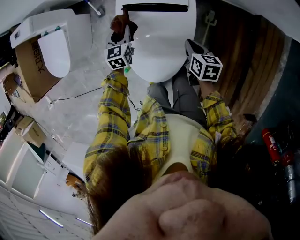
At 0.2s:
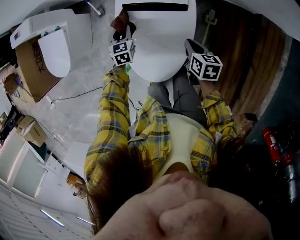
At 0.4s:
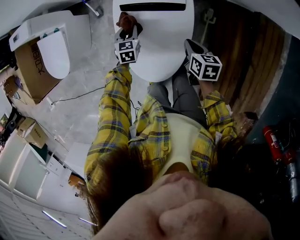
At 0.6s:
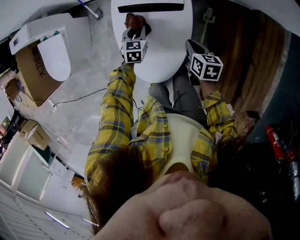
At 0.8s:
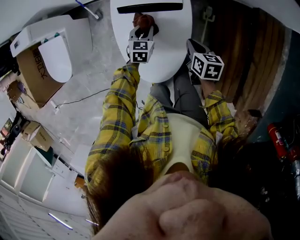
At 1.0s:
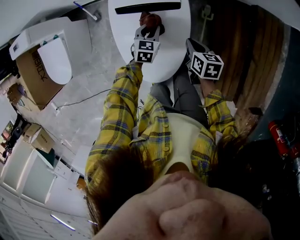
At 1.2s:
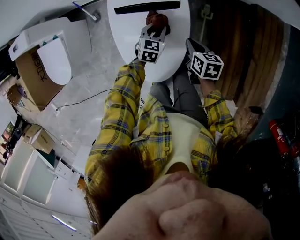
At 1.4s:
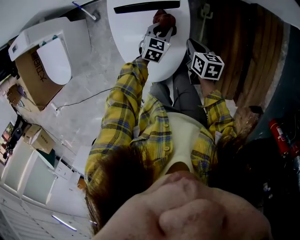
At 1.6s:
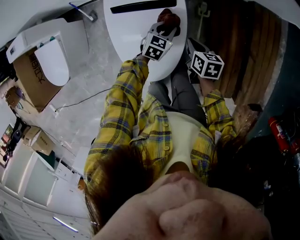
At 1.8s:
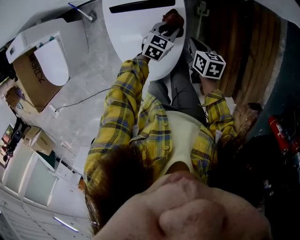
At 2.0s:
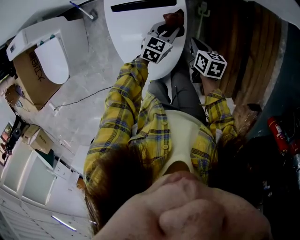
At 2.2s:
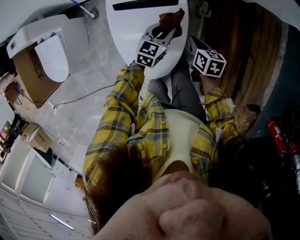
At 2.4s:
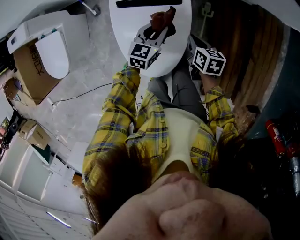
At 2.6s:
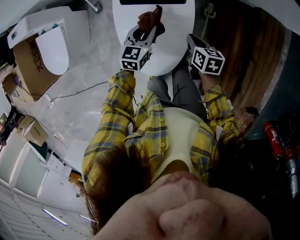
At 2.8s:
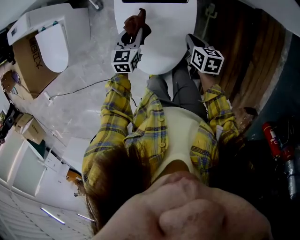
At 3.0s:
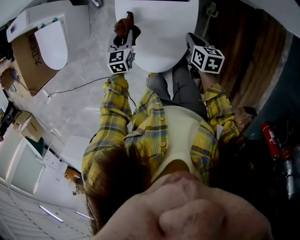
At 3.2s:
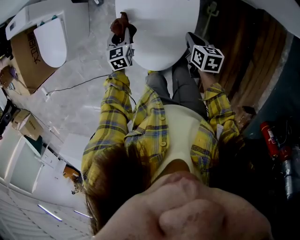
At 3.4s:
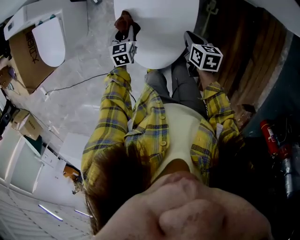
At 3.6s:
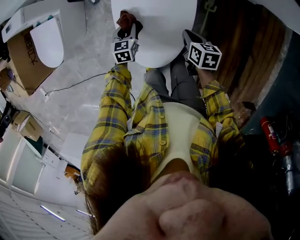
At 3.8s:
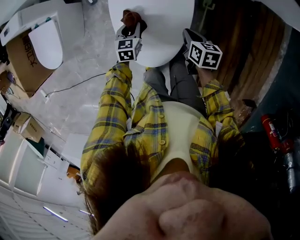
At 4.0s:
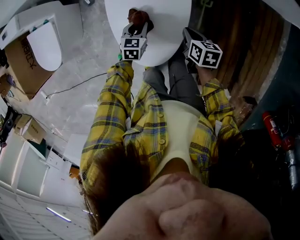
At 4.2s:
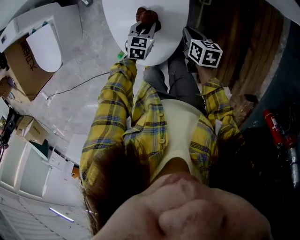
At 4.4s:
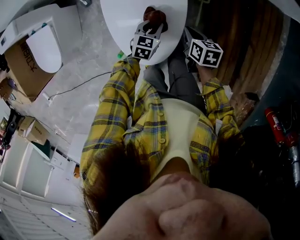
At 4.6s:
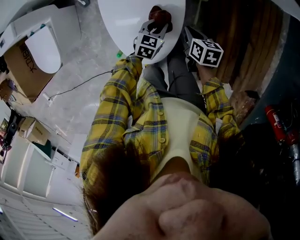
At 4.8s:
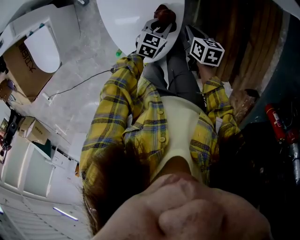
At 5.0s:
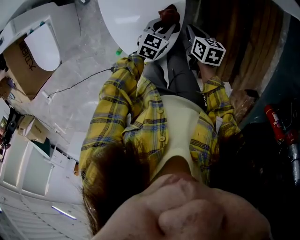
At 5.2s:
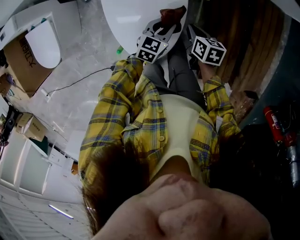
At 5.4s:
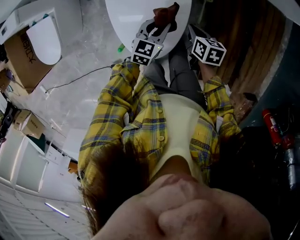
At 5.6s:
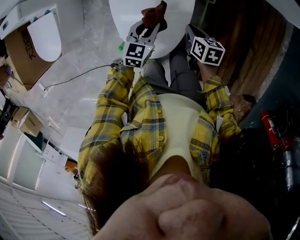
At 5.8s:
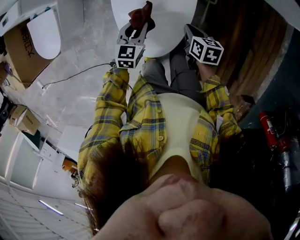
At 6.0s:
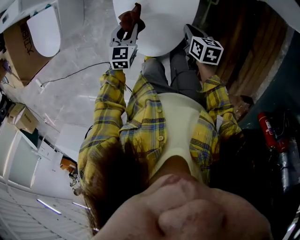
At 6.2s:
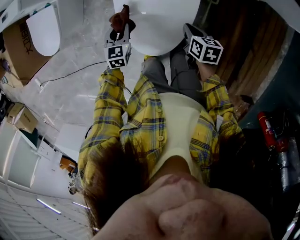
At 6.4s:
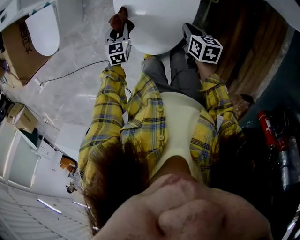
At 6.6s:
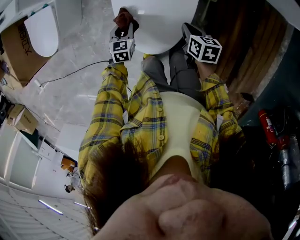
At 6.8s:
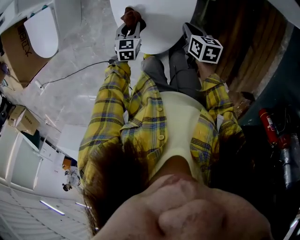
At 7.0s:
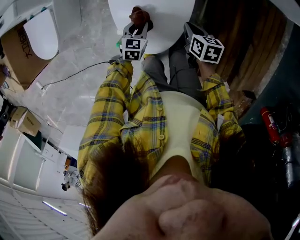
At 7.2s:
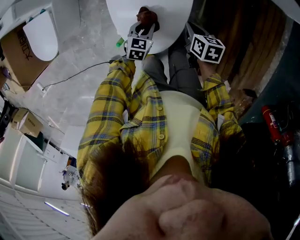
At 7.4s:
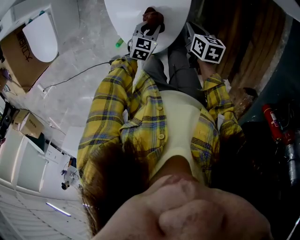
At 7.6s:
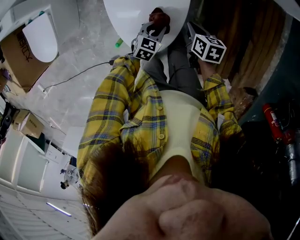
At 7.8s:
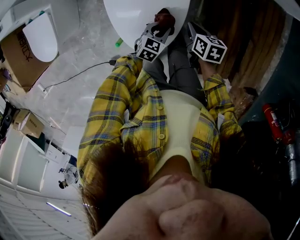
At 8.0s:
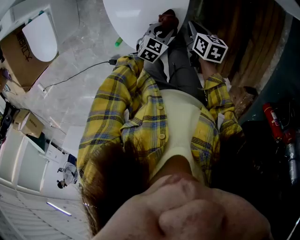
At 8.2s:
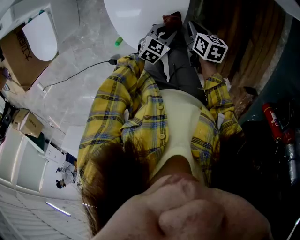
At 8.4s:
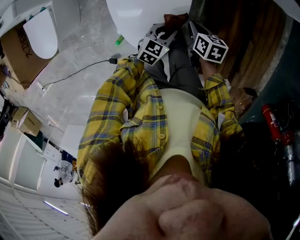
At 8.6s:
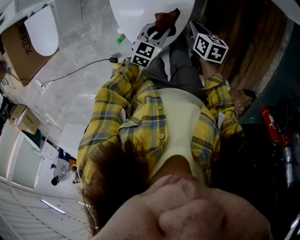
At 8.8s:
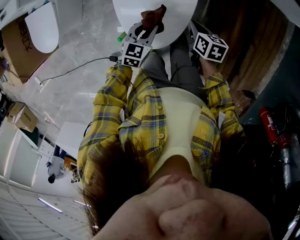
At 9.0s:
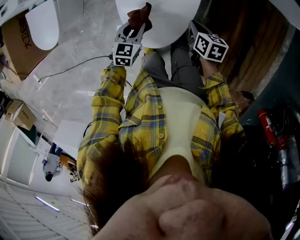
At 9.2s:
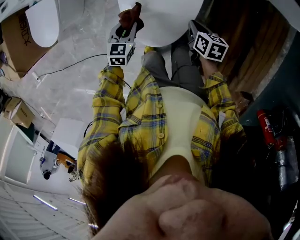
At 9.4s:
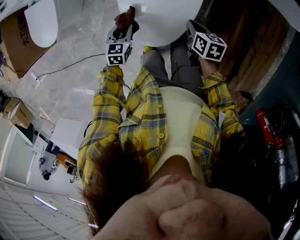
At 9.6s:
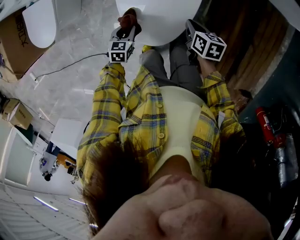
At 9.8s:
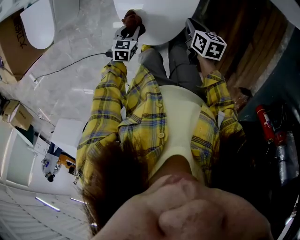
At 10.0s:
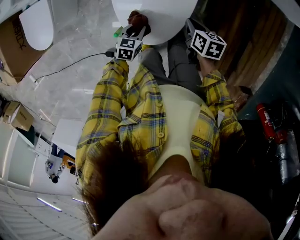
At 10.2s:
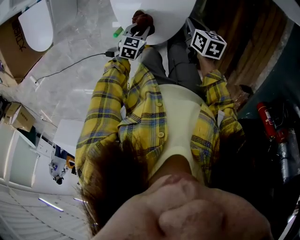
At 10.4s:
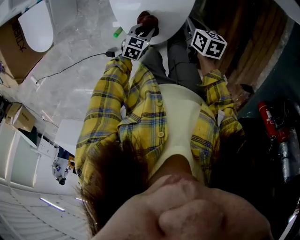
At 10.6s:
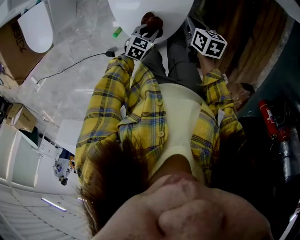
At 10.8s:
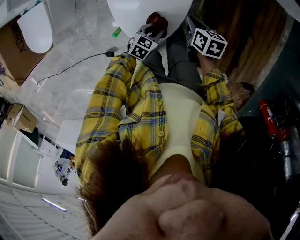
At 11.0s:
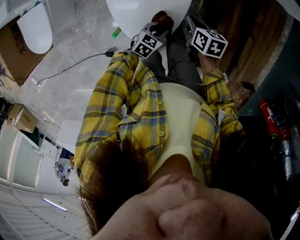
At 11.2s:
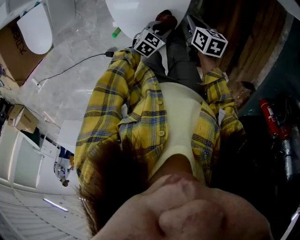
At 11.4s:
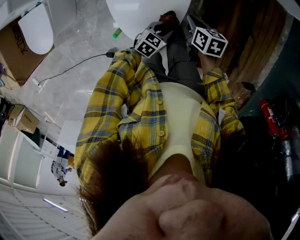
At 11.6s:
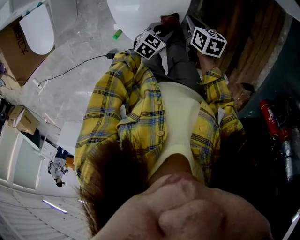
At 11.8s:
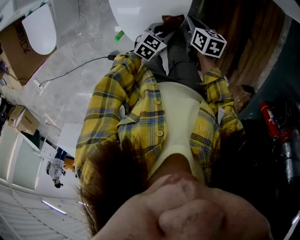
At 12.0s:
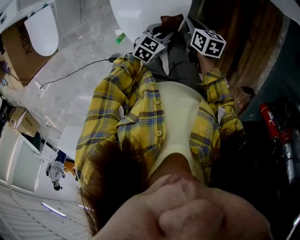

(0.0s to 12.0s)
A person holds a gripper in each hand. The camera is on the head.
0.0s - 1.6s: The left gripper shifts by approximately 25 cm, and swivels roughly 40 degrees.
1.6s - 3.0s: The left gripper changes place by about 25 cm, and swivels some 30 degrees.
3.0s - 4.4s: The left gripper heads to the right, covering roughly 15 cm, and rotates about 30 degrees.
4.4s - 6.0s: The left gripper is displaced to the left and upward by some 15 cm.
6.0s - 7.6s: The left gripper shifts by about 15 cm, and swivels about 20 degrees.
7.6s - 9.0s: The left gripper goes roughly 15 cm to the left and upward.
9.0s - 10.4s: The left gripper moves downward and backward, approximately 10 cm.
10.4s - 12.0s: The left gripper shifts approximately 10 cm to the right and upward.

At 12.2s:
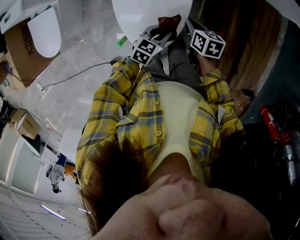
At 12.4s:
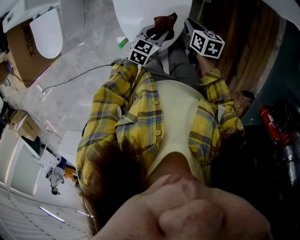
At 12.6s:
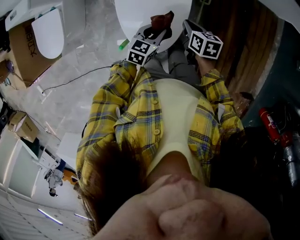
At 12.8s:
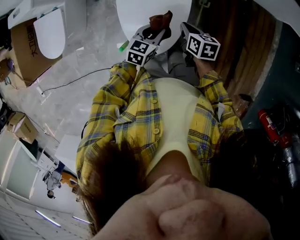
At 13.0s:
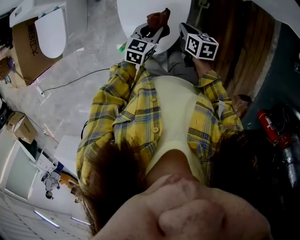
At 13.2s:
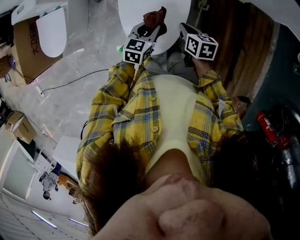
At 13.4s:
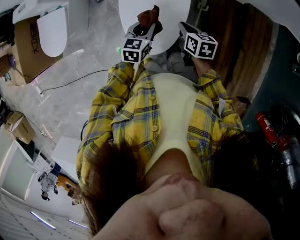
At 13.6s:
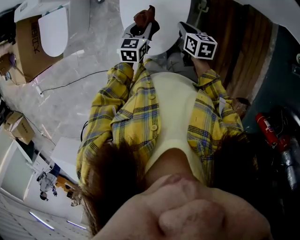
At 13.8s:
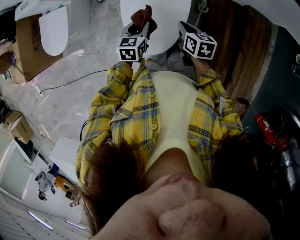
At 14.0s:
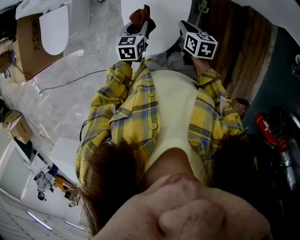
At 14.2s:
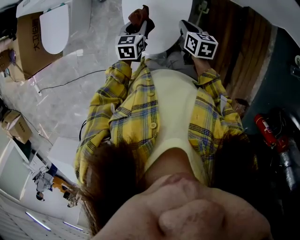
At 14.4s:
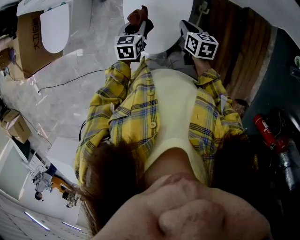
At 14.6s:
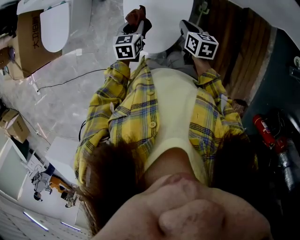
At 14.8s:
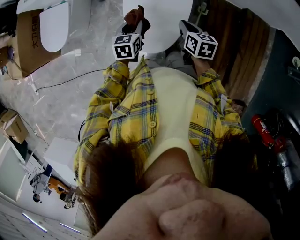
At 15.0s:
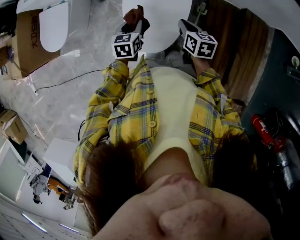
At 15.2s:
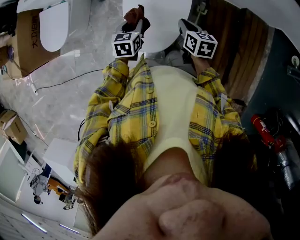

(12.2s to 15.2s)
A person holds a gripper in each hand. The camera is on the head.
12.2s - 13.8s: The left gripper heads to the left and upward, covering about 15 cm, and changes its angle by roughly 30 degrees, while the right gripper goes approximately 5 cm upward.
13.8s - 15.2s: The grippers make only small movements.

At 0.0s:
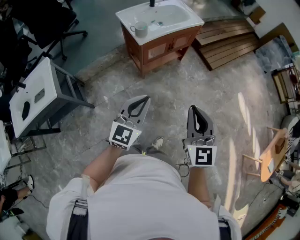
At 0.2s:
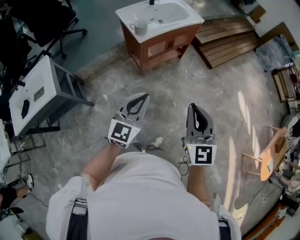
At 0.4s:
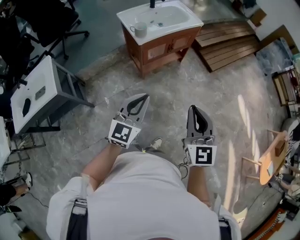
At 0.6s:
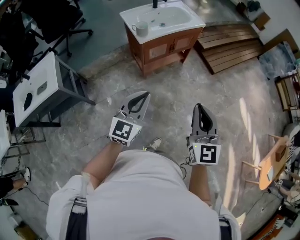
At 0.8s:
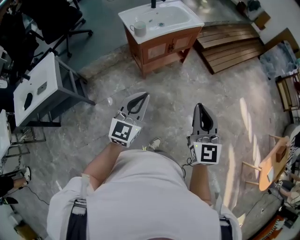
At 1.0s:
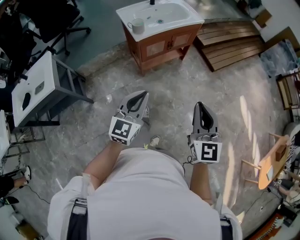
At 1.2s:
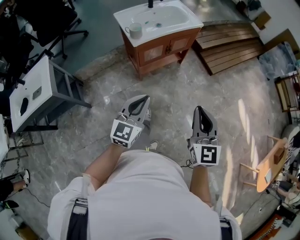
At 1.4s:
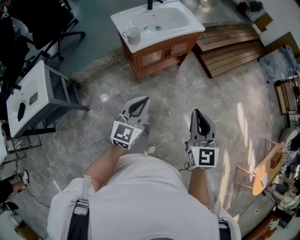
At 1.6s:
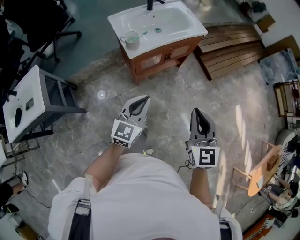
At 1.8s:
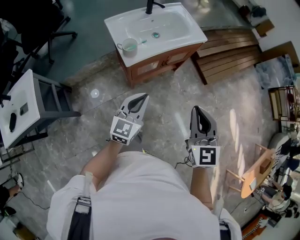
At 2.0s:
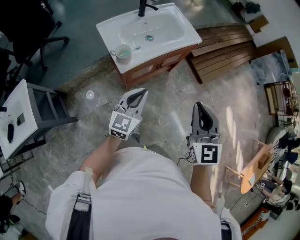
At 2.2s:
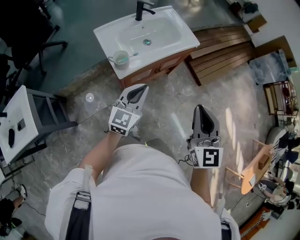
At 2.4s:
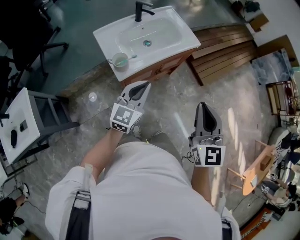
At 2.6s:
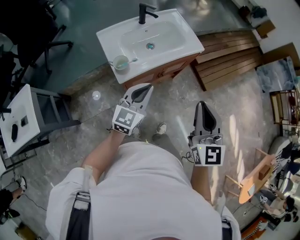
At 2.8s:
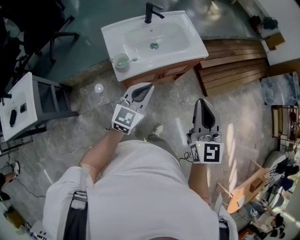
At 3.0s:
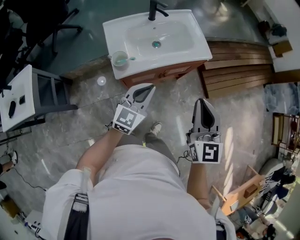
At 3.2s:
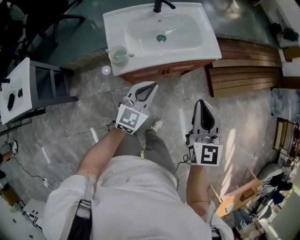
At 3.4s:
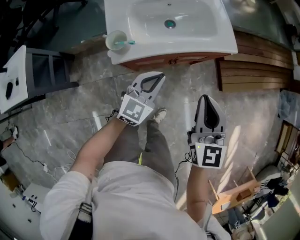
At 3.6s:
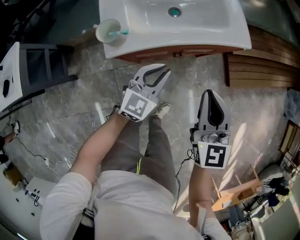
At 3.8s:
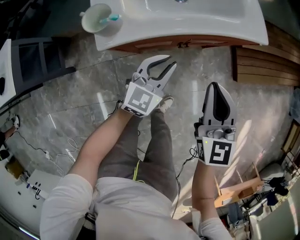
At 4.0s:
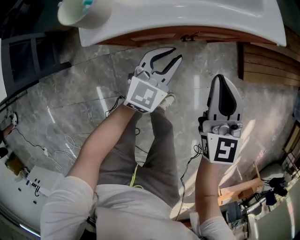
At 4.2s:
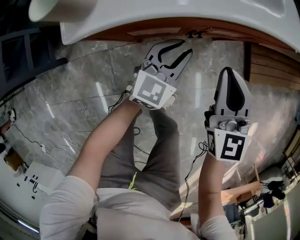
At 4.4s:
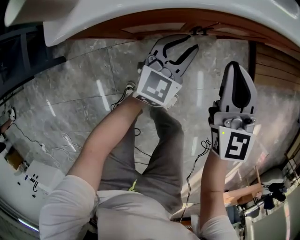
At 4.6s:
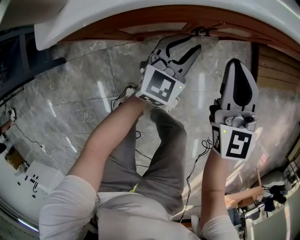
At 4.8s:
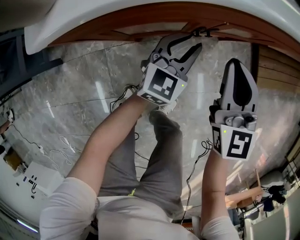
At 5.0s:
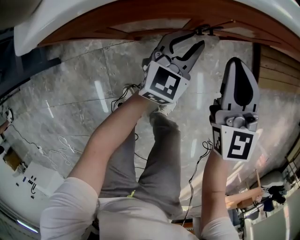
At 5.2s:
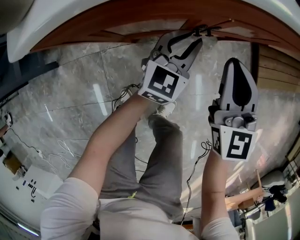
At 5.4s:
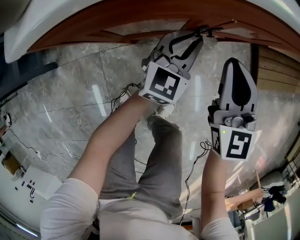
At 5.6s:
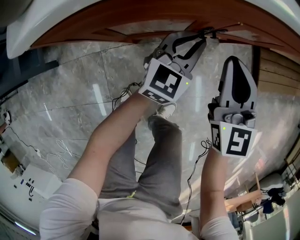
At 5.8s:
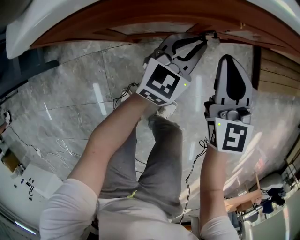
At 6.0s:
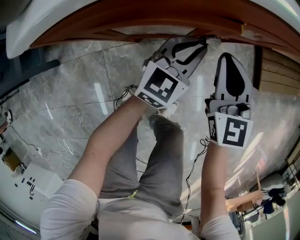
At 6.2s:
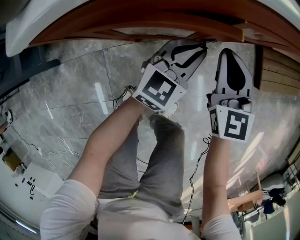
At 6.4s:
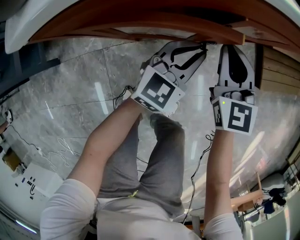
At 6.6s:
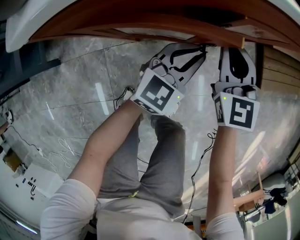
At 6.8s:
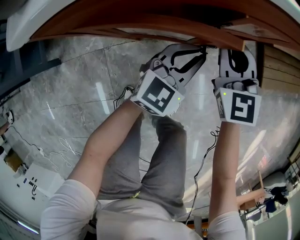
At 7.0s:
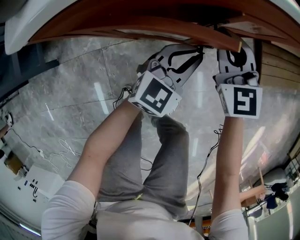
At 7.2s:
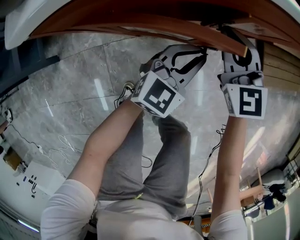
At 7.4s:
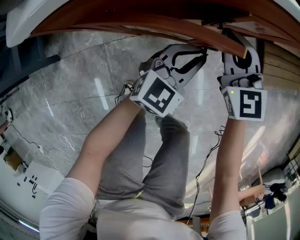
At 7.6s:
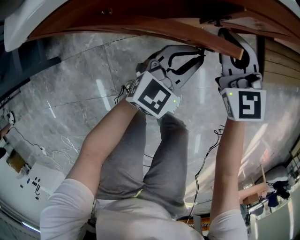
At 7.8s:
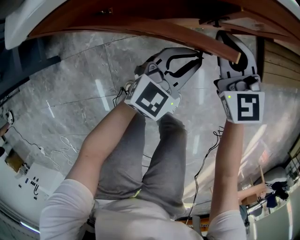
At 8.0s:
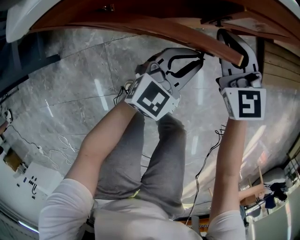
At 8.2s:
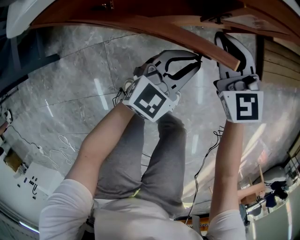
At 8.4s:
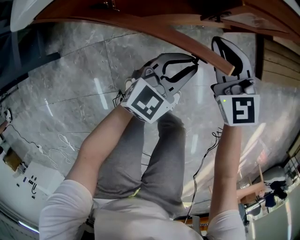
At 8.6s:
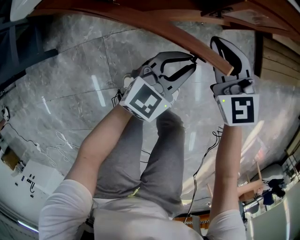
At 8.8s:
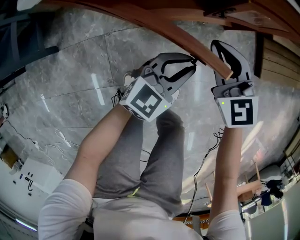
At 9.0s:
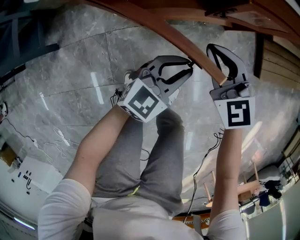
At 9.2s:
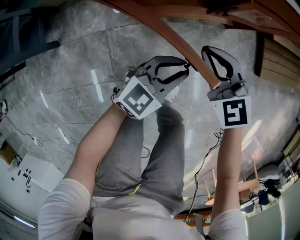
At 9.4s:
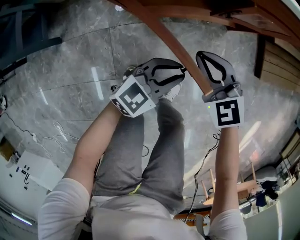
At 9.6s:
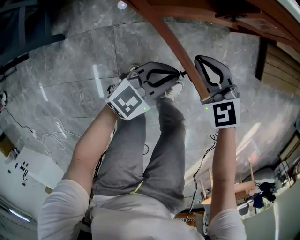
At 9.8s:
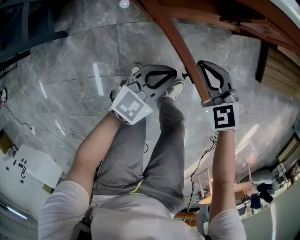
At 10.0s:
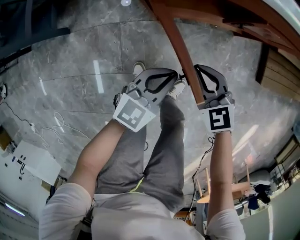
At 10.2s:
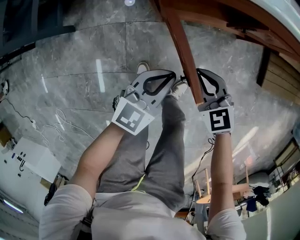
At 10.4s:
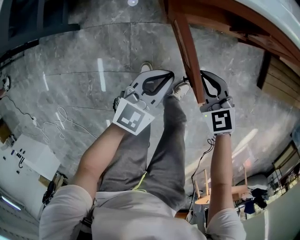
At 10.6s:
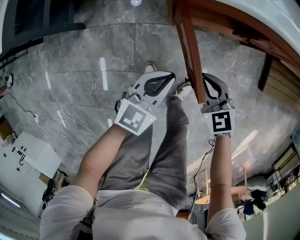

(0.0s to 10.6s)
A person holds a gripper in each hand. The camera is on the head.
0.0s - 1.6s: The two grippers go roughly 20 cm forward.
1.6s - 3.0s: The grippers both shift forward by approximately 30 cm.
3.0s - 4.6s: The two grippers go about 50 cm downward. The left gripper opens.
4.6s - 6.0s: The right gripper is displaced downward by approximately 10 cm.
6.0s - 7.6s: The left gripper travels backward by some 5 cm.
7.6s - 9.0s: Both grippers move backward, about 10 cm.
9.0s - 10.6s: The right gripper heads to the left and backward, covering some 15 cm. The left gripper heads to the left and upward, covering about 20 cm, and rotates about 20 degrees.
